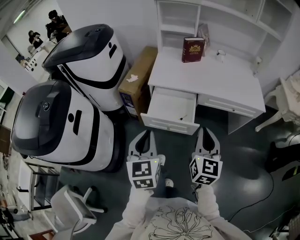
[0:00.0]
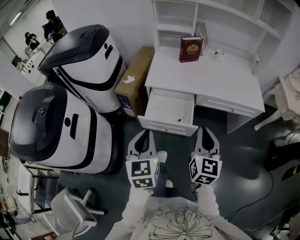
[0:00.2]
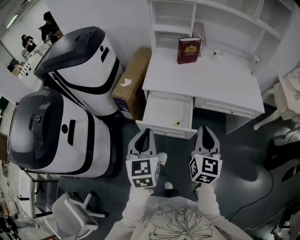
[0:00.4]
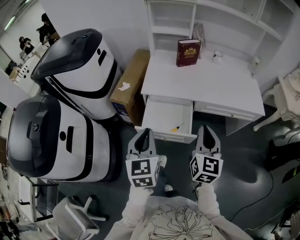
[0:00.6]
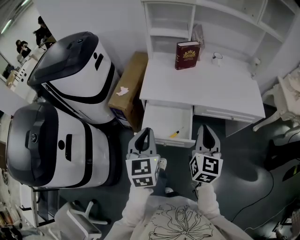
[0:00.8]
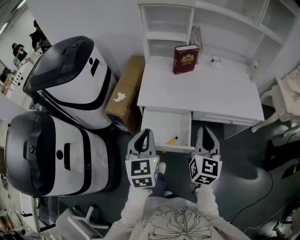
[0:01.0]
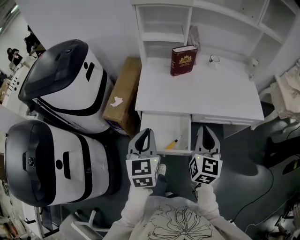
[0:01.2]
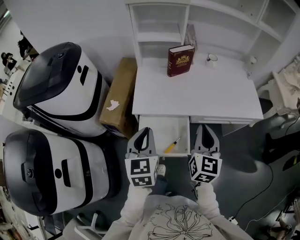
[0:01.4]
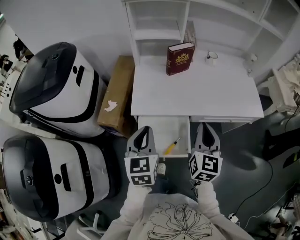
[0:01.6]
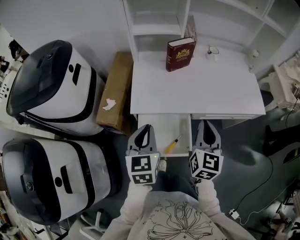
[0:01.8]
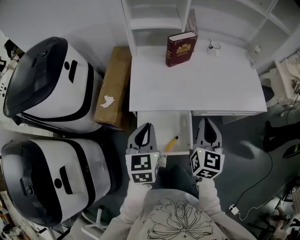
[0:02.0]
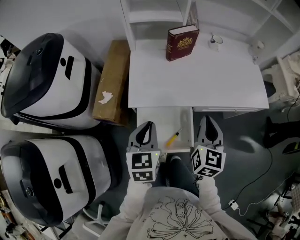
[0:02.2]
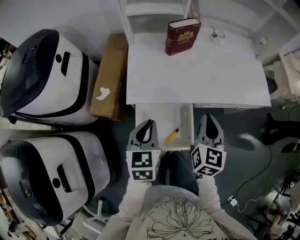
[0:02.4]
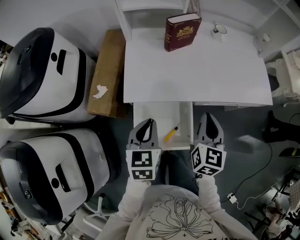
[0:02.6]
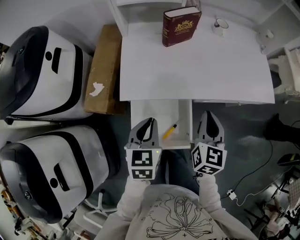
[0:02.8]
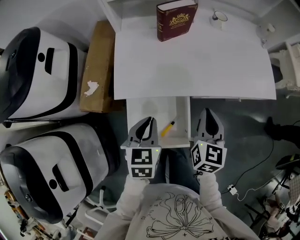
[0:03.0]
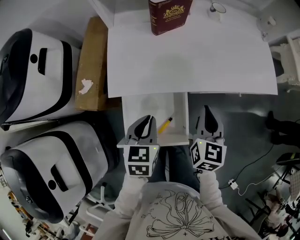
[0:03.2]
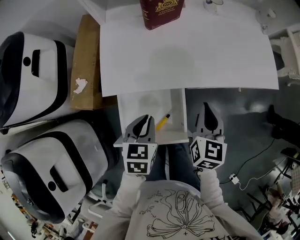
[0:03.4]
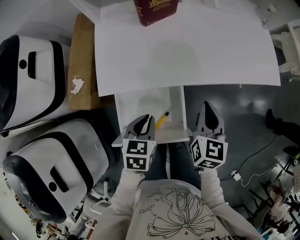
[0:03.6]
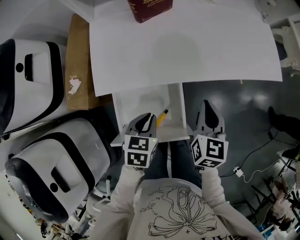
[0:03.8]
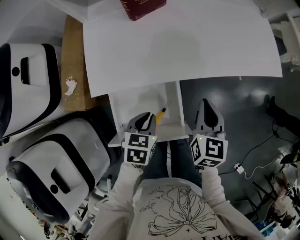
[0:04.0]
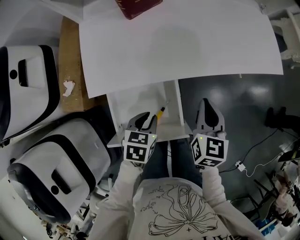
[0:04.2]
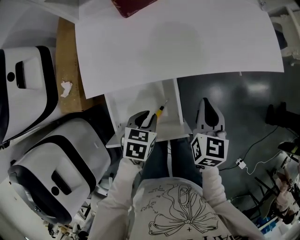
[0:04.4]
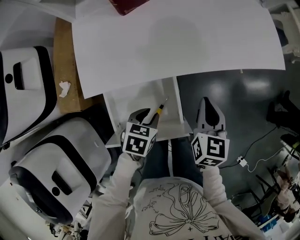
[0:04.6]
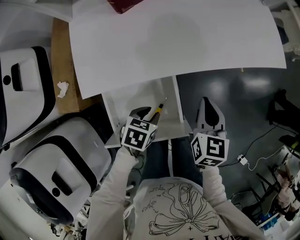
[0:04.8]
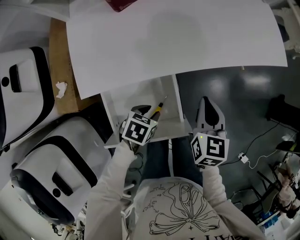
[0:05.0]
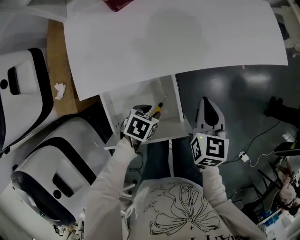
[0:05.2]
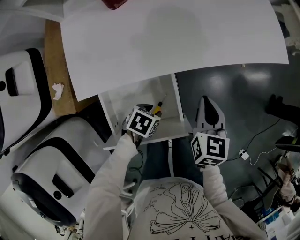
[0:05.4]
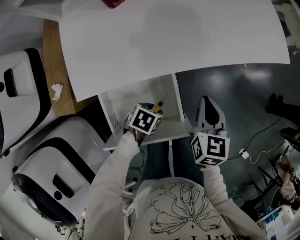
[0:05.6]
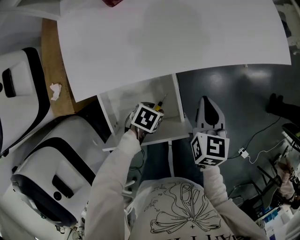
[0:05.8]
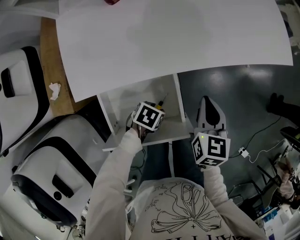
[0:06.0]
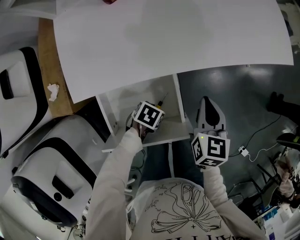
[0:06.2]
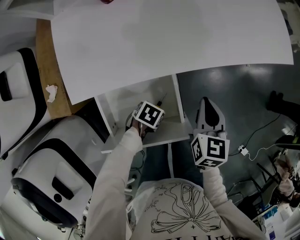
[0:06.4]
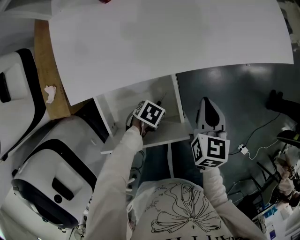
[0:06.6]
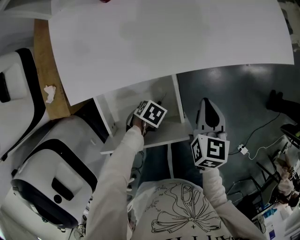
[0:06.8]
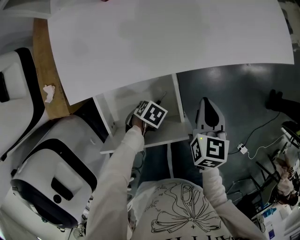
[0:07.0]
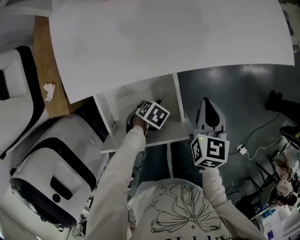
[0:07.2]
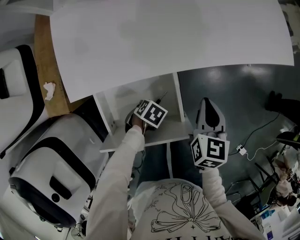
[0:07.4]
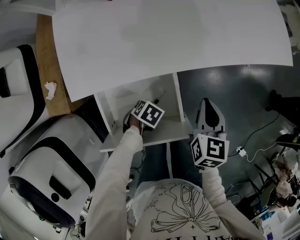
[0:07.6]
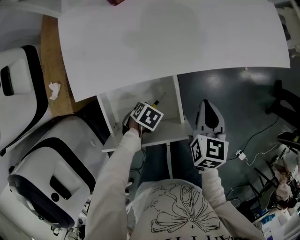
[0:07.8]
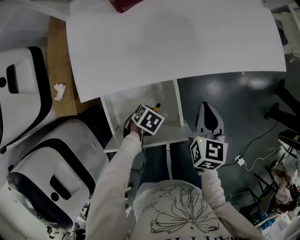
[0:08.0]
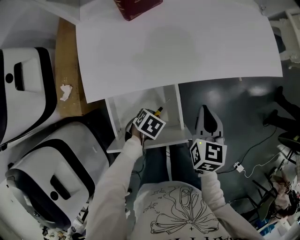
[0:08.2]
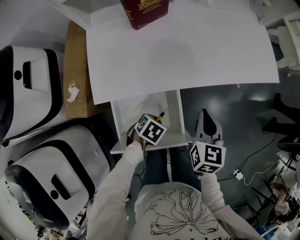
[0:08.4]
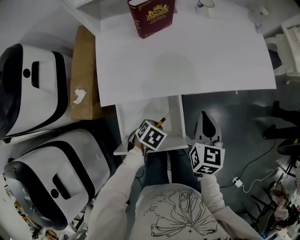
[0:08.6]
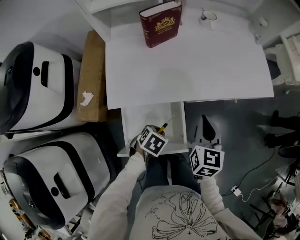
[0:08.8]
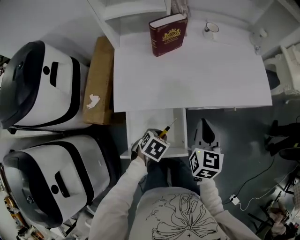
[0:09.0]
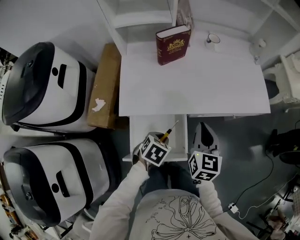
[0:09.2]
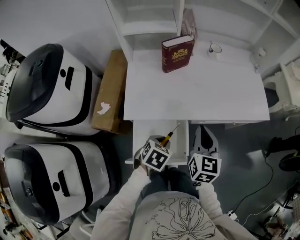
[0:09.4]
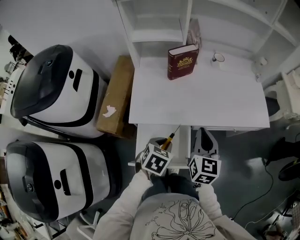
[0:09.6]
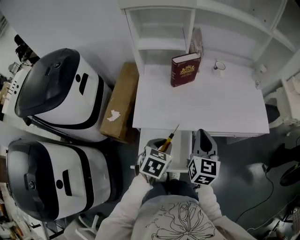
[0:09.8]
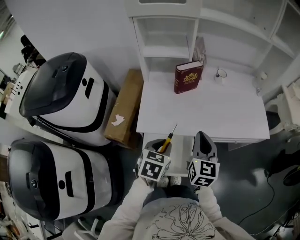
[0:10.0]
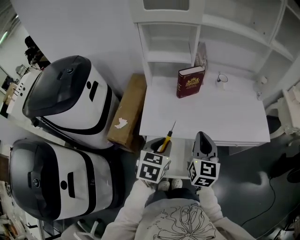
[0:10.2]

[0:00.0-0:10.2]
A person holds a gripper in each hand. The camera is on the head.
0:00.0 to 0:01.4: The two grippers go roughly 25 cm forward.
0:01.4 to 0:03.0: Both grippers travel together downward and forward, approximately 15 cm. The left gripper turns by some 20 degrees.
0:03.0 to 0:04.4: The grippers both shift downward and to the right by roughly 15 cm. The left gripper turns by approximately 30 degrees.
0:04.4 to 0:05.8: The left gripper heads downward, covering about 15 cm, and rotates about 30 degrees; the right gripper heads downward, covering roughly 5 cm.
0:05.8 to 0:07.2: The left gripper heads downward, covering about 5 cm.
0:07.2 to 0:08.8: The grippers both shift upward by roughly 15 cm. The left gripper swivels about 20 degrees.
0:08.8 to 0:10.2: The right gripper is displaced upward by about 15 cm, and turns by about 20 degrees; the left gripper shifts approximately 25 cm upward, and tips its fingers upward by roughly 30 degrees.

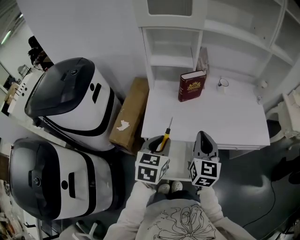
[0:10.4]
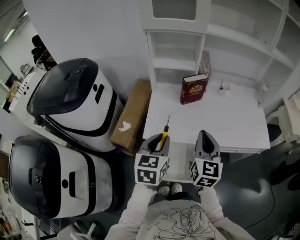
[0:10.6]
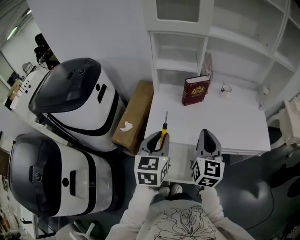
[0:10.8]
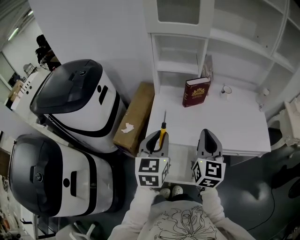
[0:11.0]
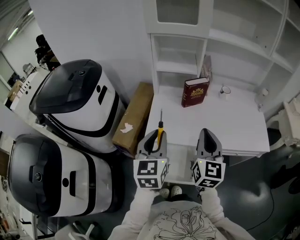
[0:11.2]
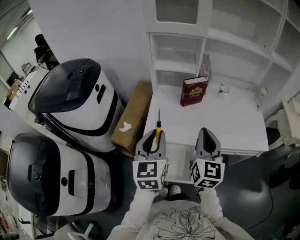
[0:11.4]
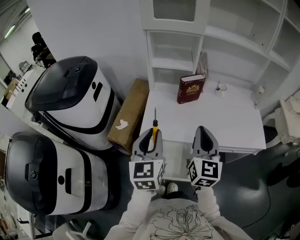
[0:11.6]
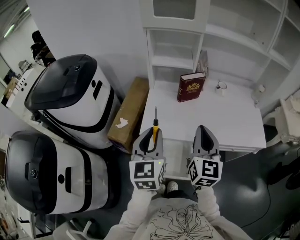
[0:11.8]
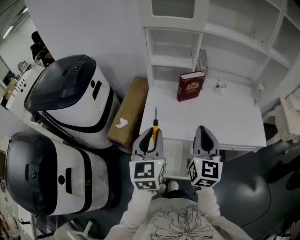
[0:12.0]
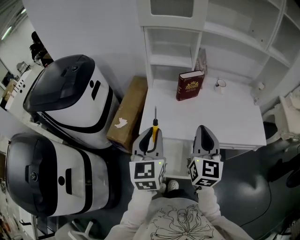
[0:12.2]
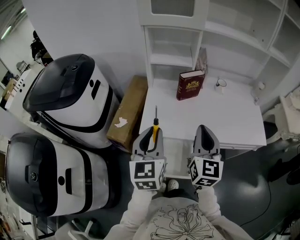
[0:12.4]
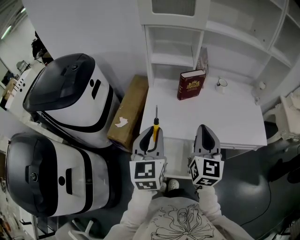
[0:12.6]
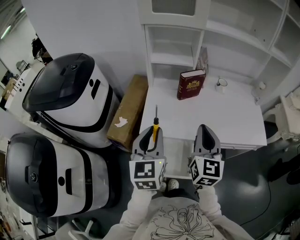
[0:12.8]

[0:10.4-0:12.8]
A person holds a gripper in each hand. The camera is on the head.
0:10.4 to 0:11.6: The grippers both shift upward by approximately 5 cm. The left gripper rotates approximately 30 degrees.
0:11.6 to 0:12.8: Both grippers stay about where they are.

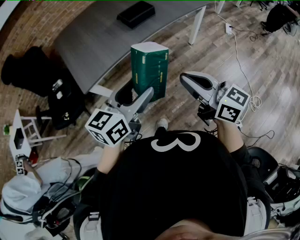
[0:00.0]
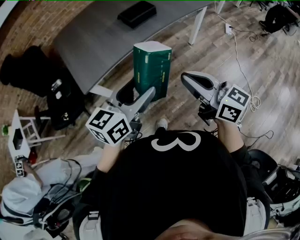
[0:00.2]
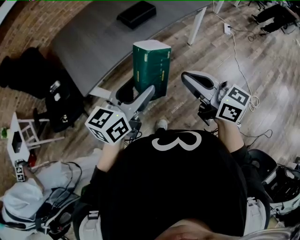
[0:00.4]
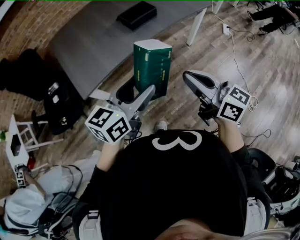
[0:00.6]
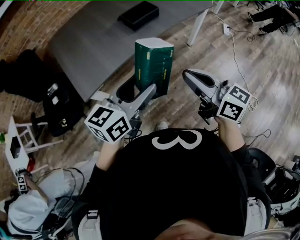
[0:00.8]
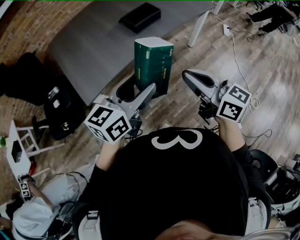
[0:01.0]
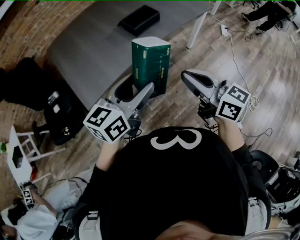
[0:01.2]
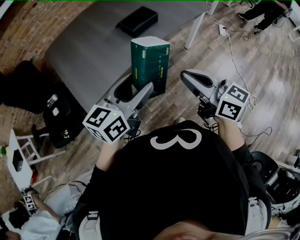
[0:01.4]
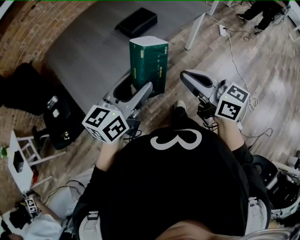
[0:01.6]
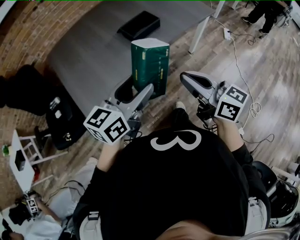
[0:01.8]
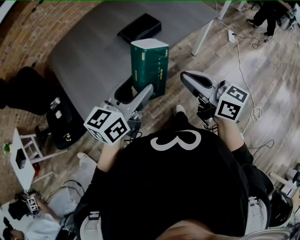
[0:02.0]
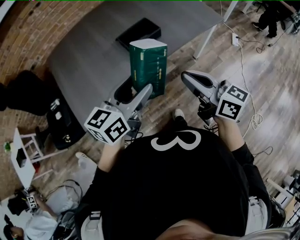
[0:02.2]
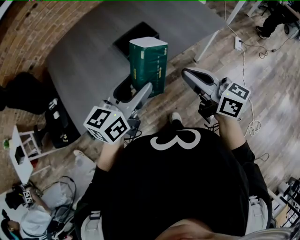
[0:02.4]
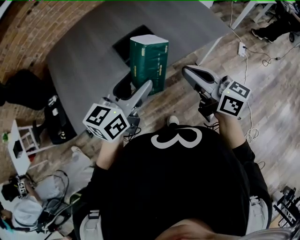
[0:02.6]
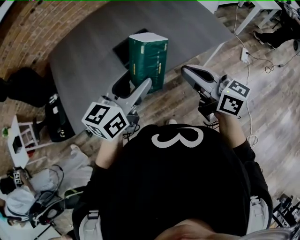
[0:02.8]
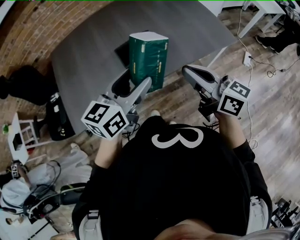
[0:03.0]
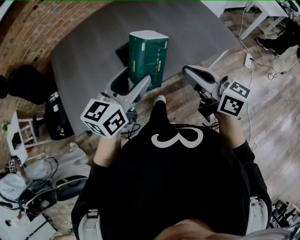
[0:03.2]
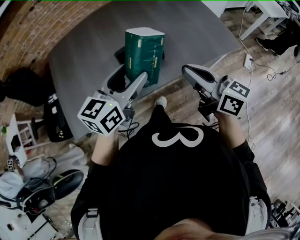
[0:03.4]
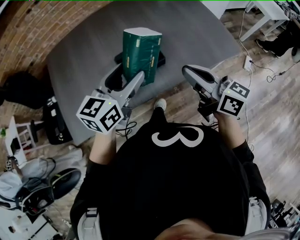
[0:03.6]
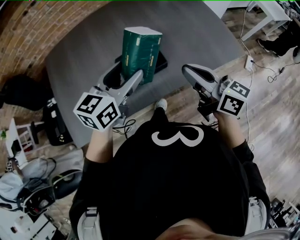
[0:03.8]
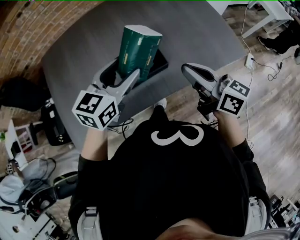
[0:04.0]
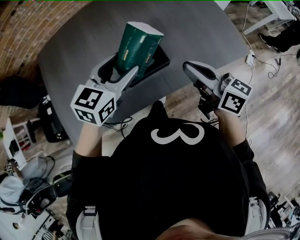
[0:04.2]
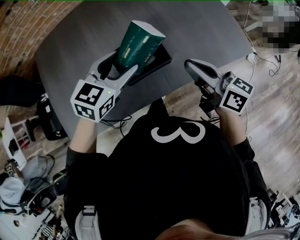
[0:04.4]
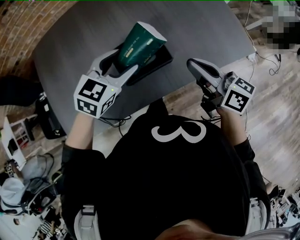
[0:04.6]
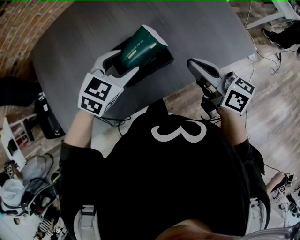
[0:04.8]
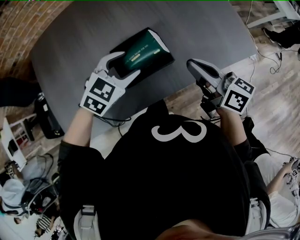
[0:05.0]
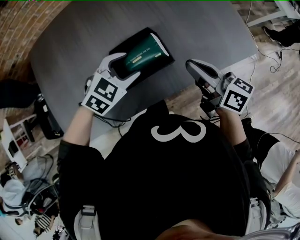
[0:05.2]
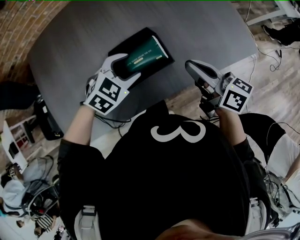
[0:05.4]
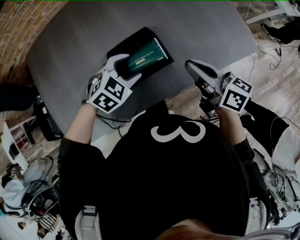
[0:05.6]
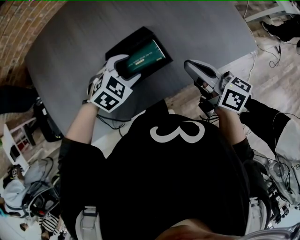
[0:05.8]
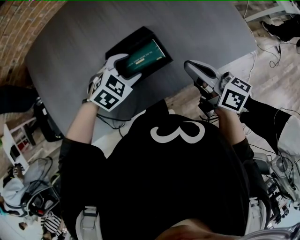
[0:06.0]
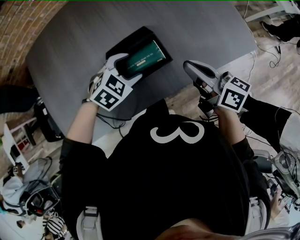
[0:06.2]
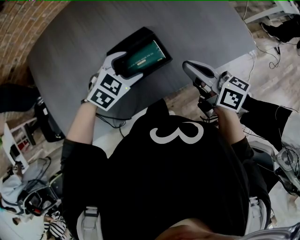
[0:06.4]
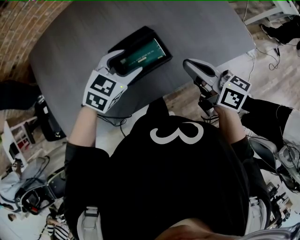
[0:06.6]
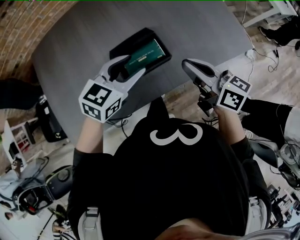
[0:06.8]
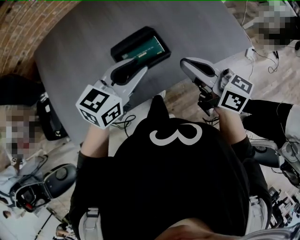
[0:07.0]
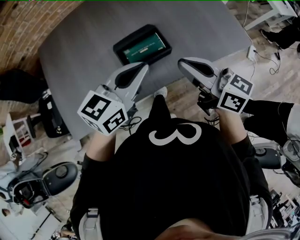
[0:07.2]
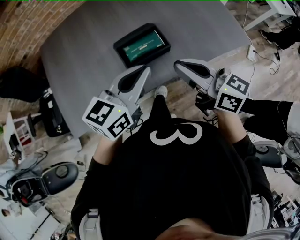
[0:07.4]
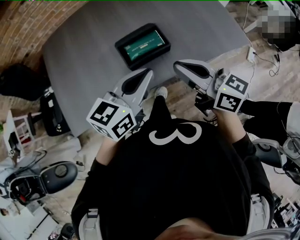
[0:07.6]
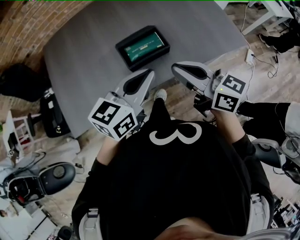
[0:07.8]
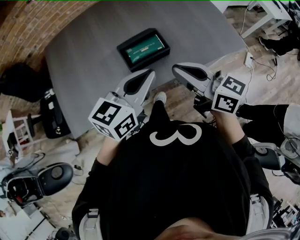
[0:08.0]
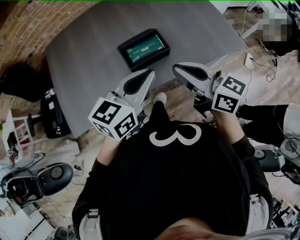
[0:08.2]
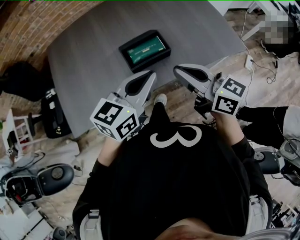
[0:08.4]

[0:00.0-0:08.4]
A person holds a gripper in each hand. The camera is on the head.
0:00.0 to 0:01.4: The two grippers go about 15 cm forward.
0:01.4 to 0:02.8: Both grippers travel together forward and to the right, some 30 cm.
0:02.8 to 0:04.2: Both grippers move forward, some 20 cm.
0:04.2 to 0:05.6: The right gripper heads downward, covering some 5 cm. The left gripper shifts approximately 15 cm downward, and changes its angle by approximately 40 degrees.
0:05.6 to 0:07.0: The right gripper goes approximately 10 cm upward and backward; the left gripper moves upward and backward, about 15 cm, points its fingers about 30 degrees further upward, and closes.
0:07.0 to 0:08.4: The grippers both shift backward by about 10 cm.

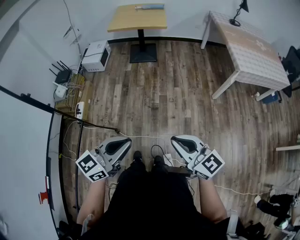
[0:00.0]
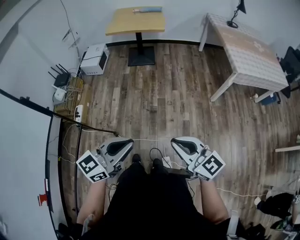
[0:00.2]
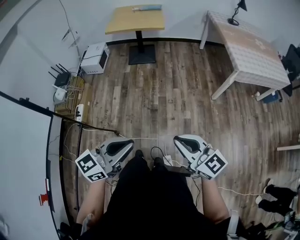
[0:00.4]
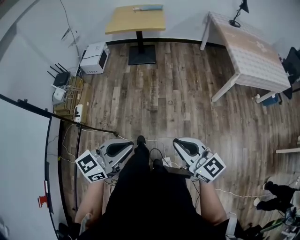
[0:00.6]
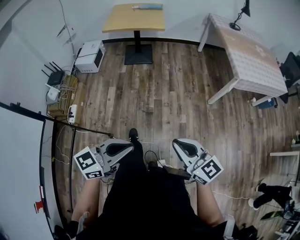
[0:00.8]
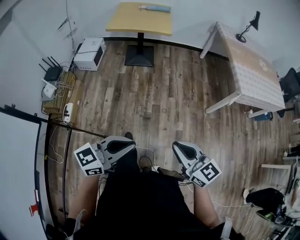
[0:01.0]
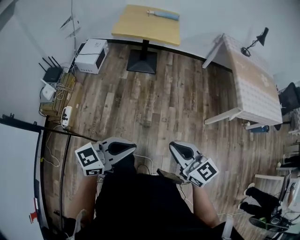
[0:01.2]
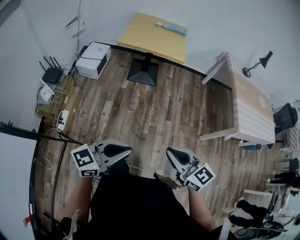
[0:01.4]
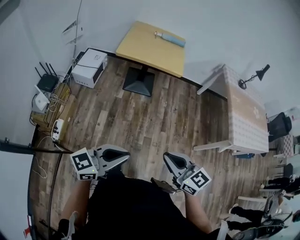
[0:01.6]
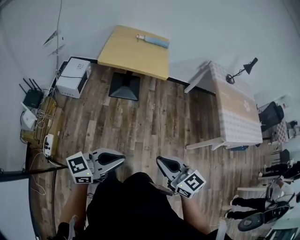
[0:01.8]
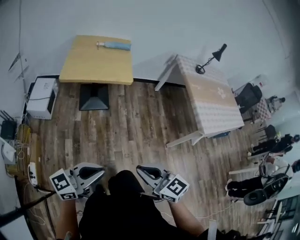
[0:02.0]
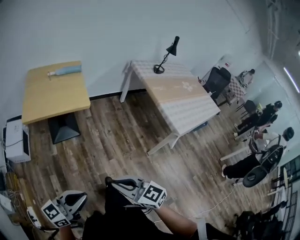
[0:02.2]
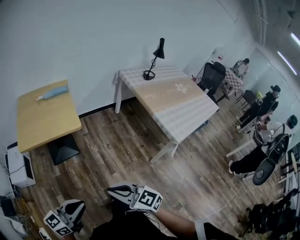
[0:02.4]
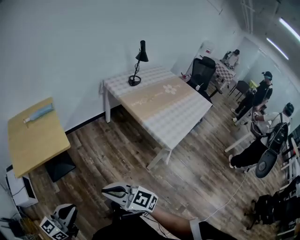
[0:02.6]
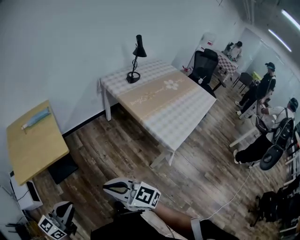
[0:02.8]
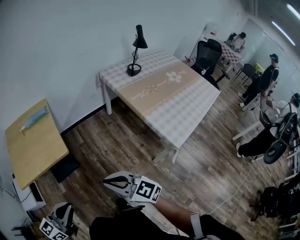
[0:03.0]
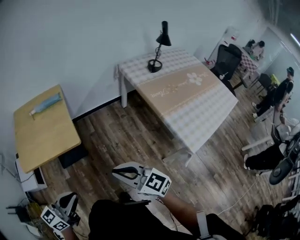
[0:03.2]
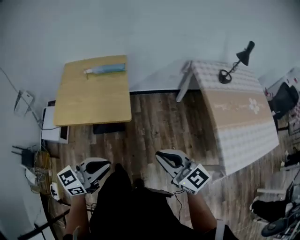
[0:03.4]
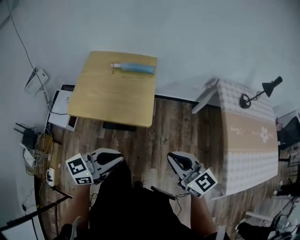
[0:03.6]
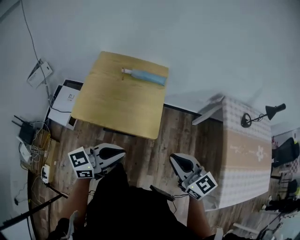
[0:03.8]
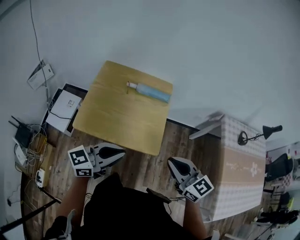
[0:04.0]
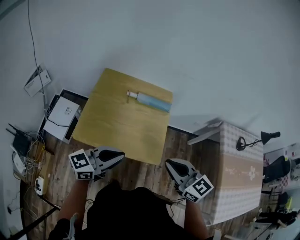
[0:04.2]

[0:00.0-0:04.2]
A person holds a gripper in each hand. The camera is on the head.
0:00.0 to 0:01.4: The two grippers go some 30 cm forward and to the left.
0:01.4 to 0:02.8: Both grippers are carried forward, some 40 cm.
0:02.8 to 0:04.2: The pair of grippers is taken forward and to the left, approximately 40 cm.
